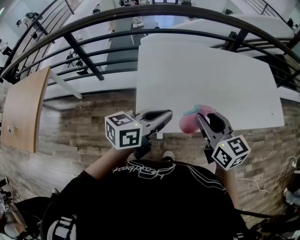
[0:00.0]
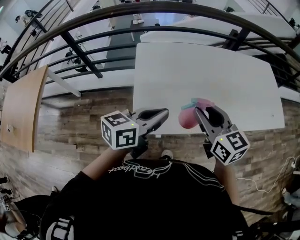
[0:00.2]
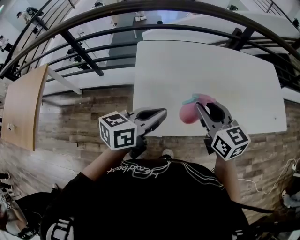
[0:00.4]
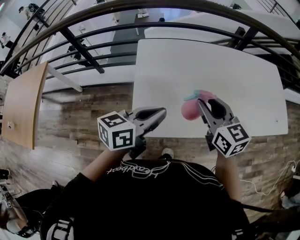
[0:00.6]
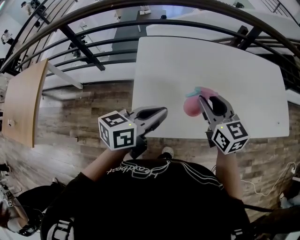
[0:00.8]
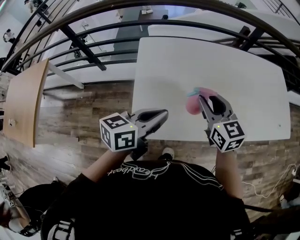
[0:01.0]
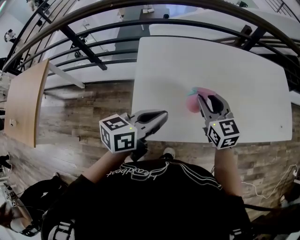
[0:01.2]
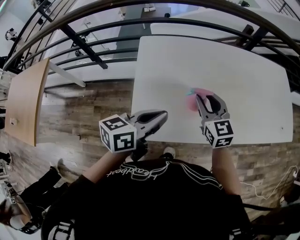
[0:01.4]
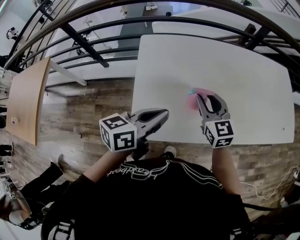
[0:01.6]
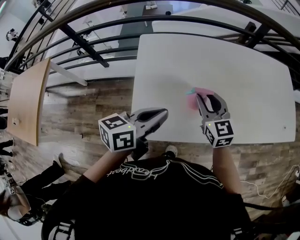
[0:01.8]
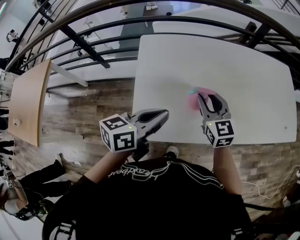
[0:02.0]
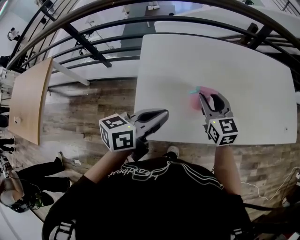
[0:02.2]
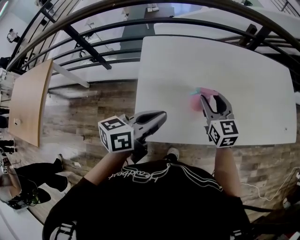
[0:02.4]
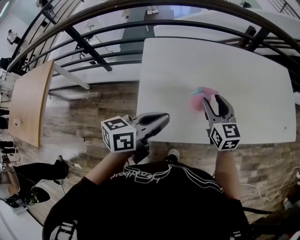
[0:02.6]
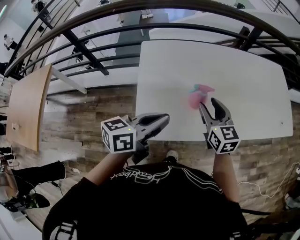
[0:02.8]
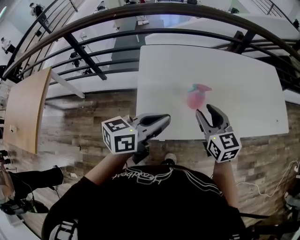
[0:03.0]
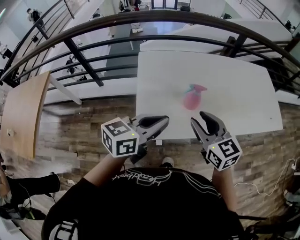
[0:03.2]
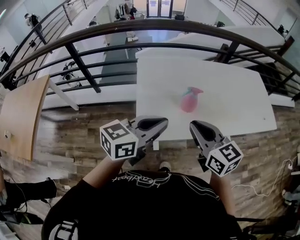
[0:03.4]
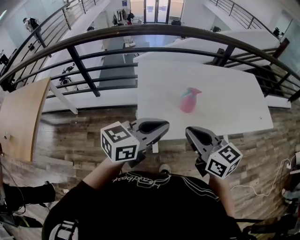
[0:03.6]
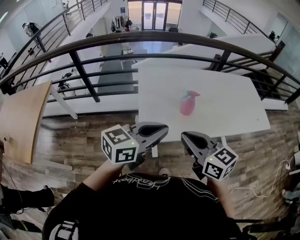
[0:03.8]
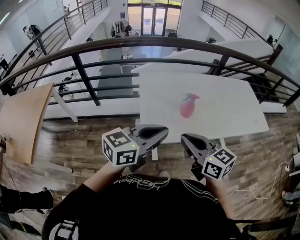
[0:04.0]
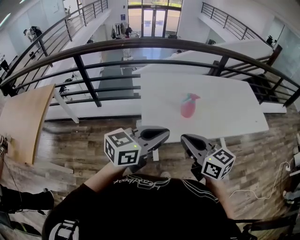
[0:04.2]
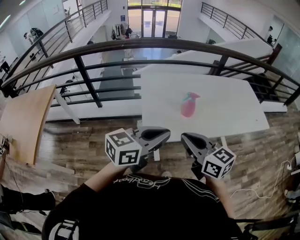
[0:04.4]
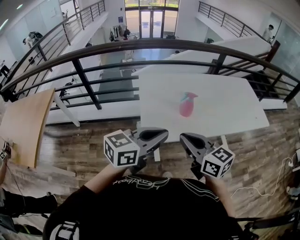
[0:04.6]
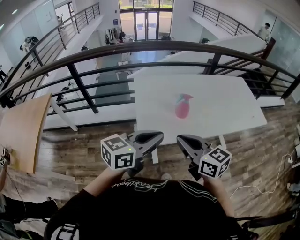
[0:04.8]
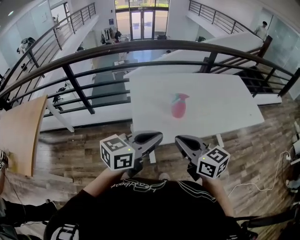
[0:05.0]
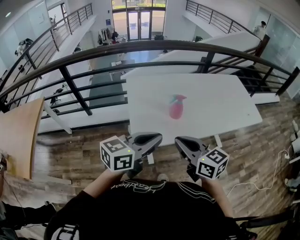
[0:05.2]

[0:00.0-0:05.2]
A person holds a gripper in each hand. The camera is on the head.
0:00.0 to 0:01.8: The right gripper is displaced forward and downward by roughly 20 cm. Meanwhile the left gripper moves forward and downward, about 10 cm.
0:01.8 to 0:03.4: The left gripper travels backward and upward by approximately 15 cm, and swivels about 20 degrees. The right gripper moves backward and upward, some 25 cm, and closes up.
0:03.4 to 0:05.2: The two grippers go some 10 cm backward.

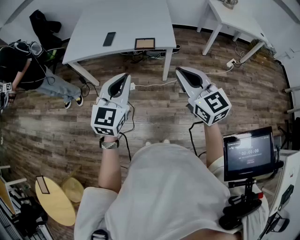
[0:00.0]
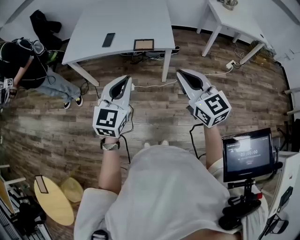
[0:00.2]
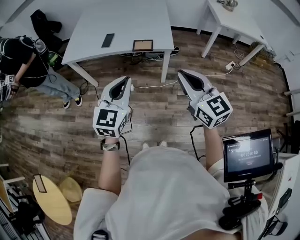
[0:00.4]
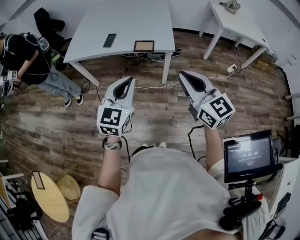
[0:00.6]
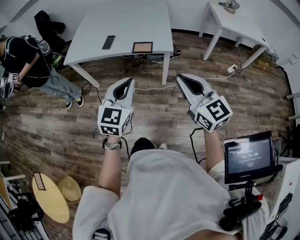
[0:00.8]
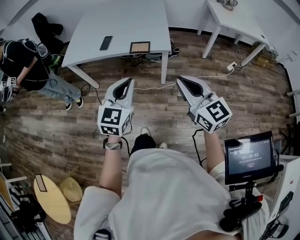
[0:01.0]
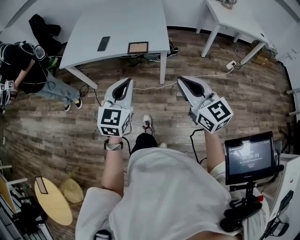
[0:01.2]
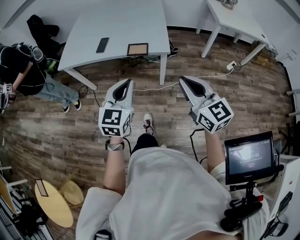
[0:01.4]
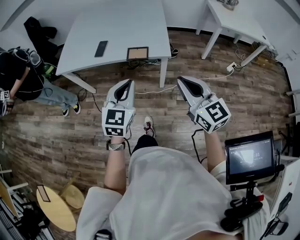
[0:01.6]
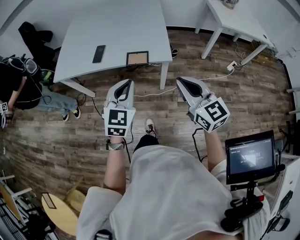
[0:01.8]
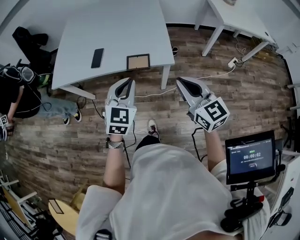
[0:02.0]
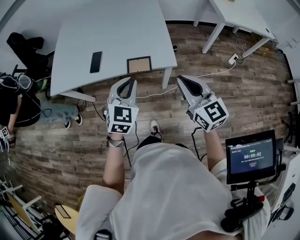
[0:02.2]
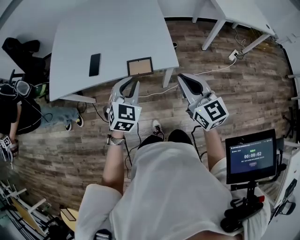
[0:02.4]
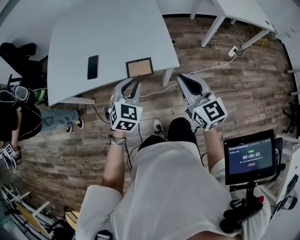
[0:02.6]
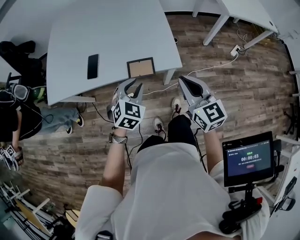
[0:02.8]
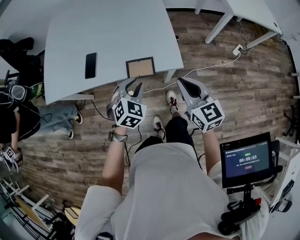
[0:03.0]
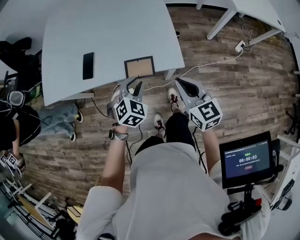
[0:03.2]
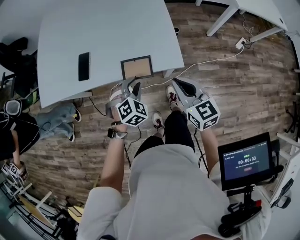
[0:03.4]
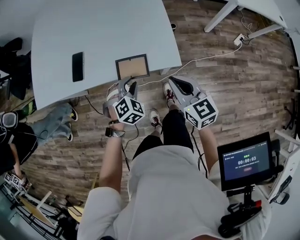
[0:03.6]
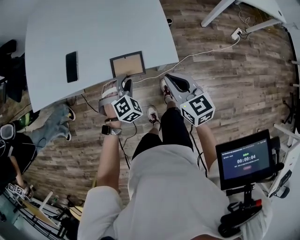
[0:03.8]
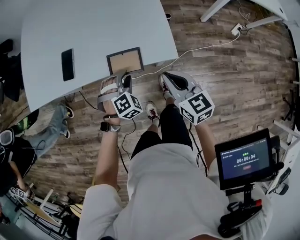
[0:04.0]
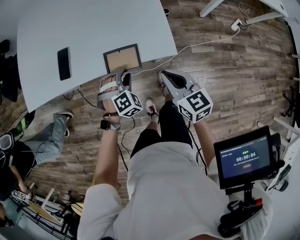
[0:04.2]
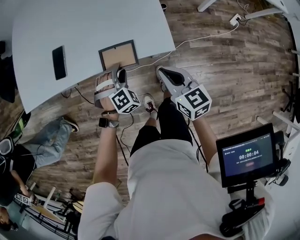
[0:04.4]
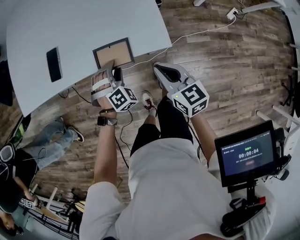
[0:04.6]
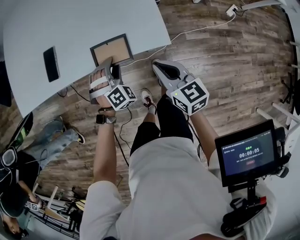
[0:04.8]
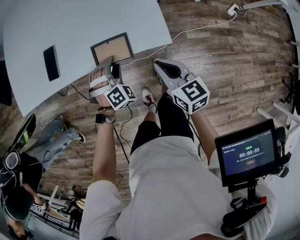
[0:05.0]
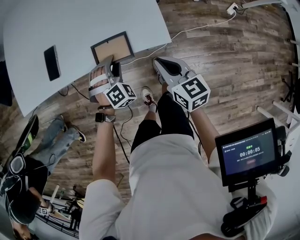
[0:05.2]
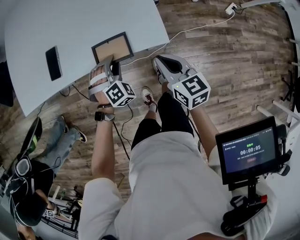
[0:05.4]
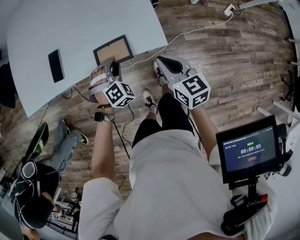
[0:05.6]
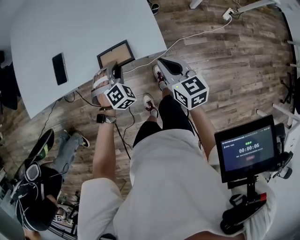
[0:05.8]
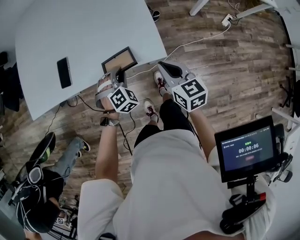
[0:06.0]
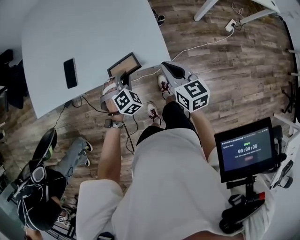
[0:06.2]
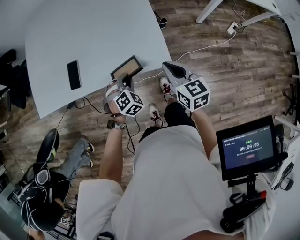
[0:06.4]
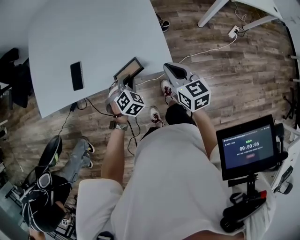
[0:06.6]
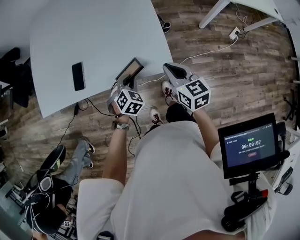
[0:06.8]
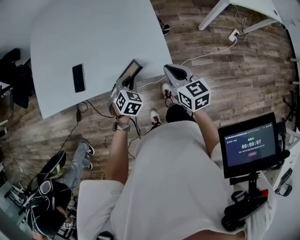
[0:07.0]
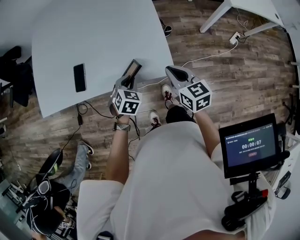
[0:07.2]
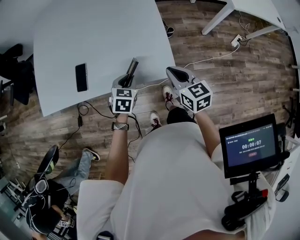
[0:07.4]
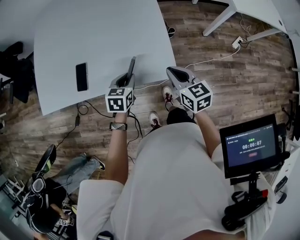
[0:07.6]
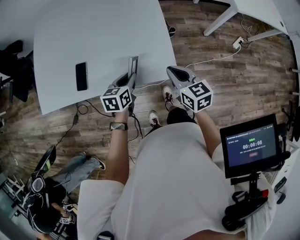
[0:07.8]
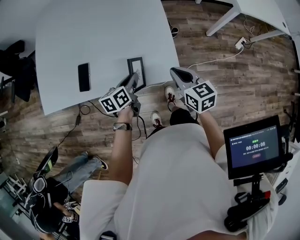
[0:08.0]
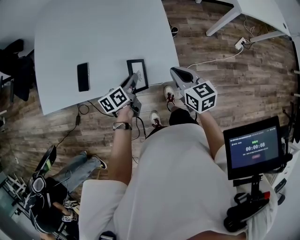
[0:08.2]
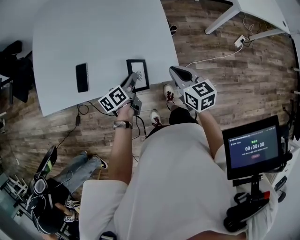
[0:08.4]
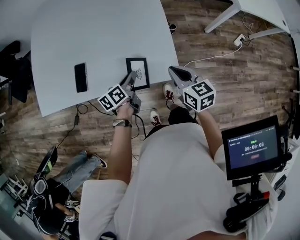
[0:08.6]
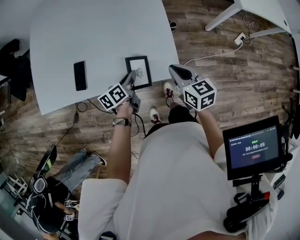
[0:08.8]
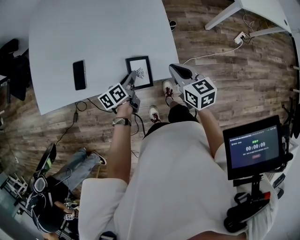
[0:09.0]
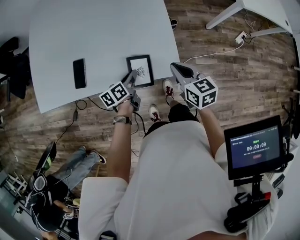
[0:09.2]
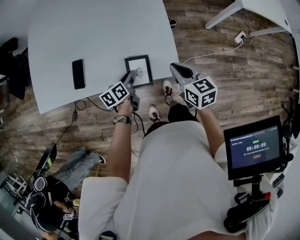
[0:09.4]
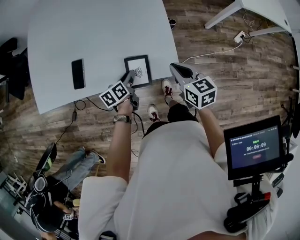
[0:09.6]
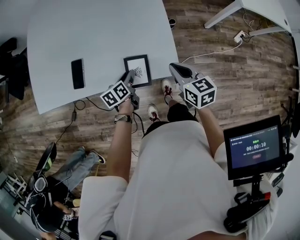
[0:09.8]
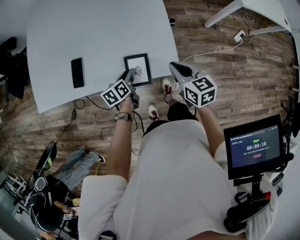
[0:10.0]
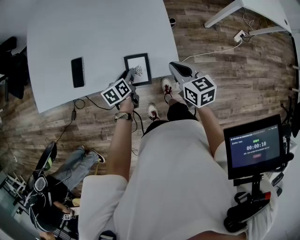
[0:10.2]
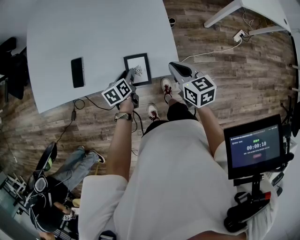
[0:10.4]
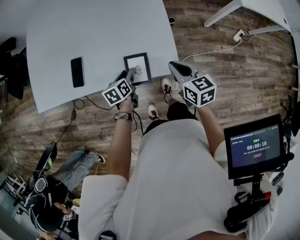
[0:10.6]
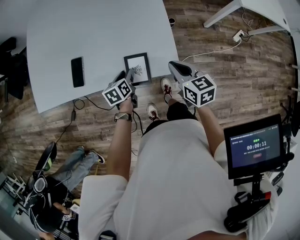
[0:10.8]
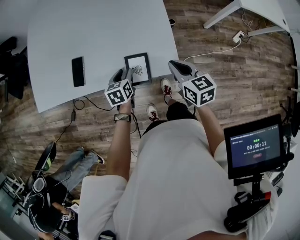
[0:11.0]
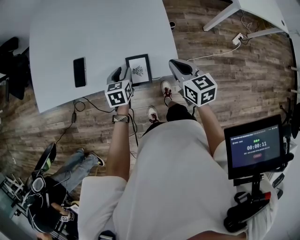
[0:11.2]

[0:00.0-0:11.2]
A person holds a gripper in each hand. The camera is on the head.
0:00.0 to 0:01.6: The left gripper is displaced forward, to the right and downward by some 10 cm; the right gripper goes roughly 10 cm to the right and forward.
0:01.6 to 0:03.2: Both grippers move forward and downward, some 30 cm. The left gripper points its fingers roughly 30 degrees further downward, and opens up.
0:03.2 to 0:04.8: Both grippers travel together downward, roughly 10 cm. The left gripper turns by about 30 degrees.
0:04.8 to 0:06.4: The left gripper swivels some 20 degrees. Meanwhile the right gripper travels forward by some 5 cm.
0:06.4 to 0:08.0: The left gripper changes place by some 5 cm, and twists some 80 degrees counterclockwise, seen from behind.
0:08.0 to 0:09.6: The left gripper travels downward by approximately 5 cm.
0:09.6 to 0:11.2: The left gripper rotates roughly 30 degrees.

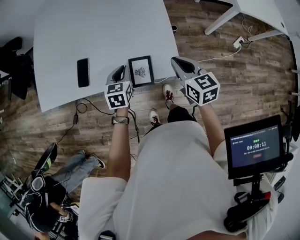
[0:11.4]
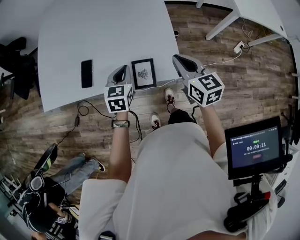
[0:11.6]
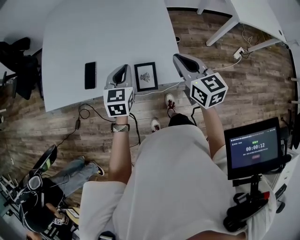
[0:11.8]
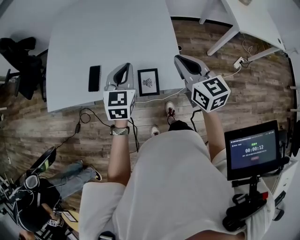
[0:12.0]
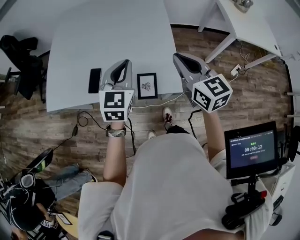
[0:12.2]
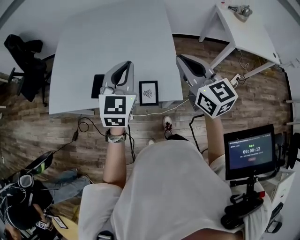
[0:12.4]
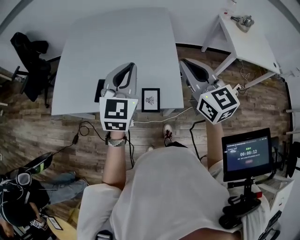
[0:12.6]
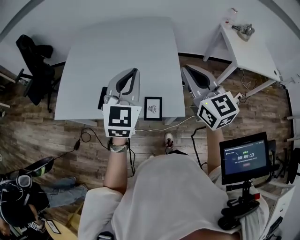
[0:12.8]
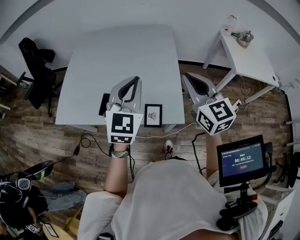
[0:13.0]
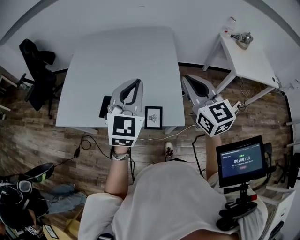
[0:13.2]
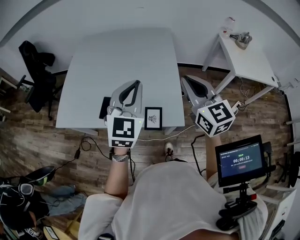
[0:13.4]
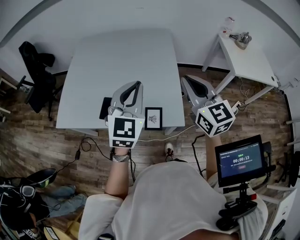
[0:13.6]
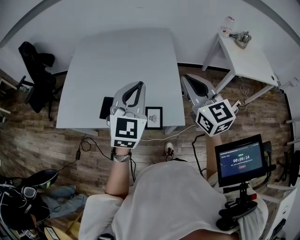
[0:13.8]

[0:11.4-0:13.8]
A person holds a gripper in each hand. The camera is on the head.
0:11.4 to 0:12.6: The two grippers go approximately 30 cm upward. The left gripper tilts its fingers approximately 30 degrees upward. Meanwhile the right gripper changes its angle by roughly 30 degrees.
0:12.6 to 0:13.8: The grippers move only a little.

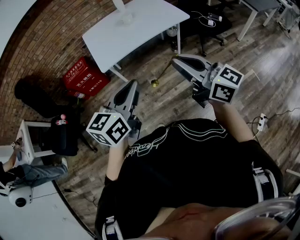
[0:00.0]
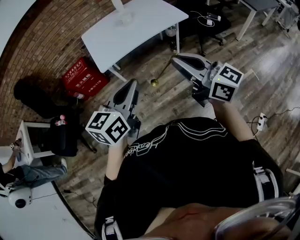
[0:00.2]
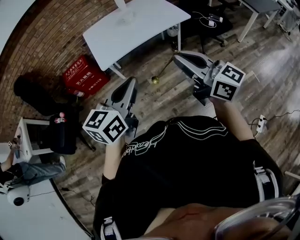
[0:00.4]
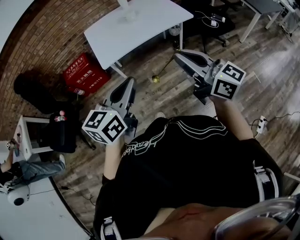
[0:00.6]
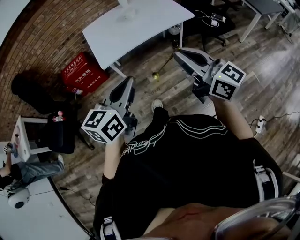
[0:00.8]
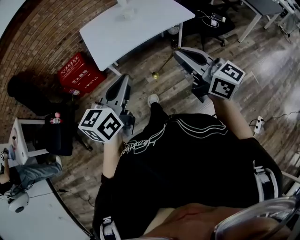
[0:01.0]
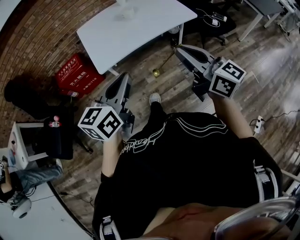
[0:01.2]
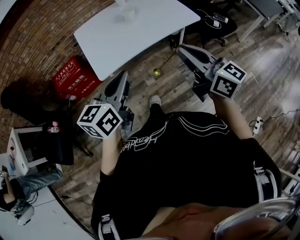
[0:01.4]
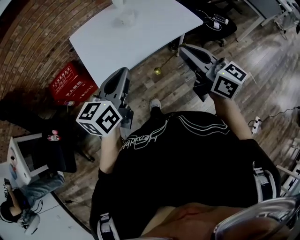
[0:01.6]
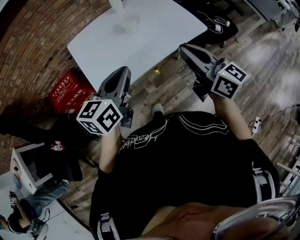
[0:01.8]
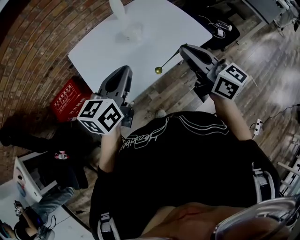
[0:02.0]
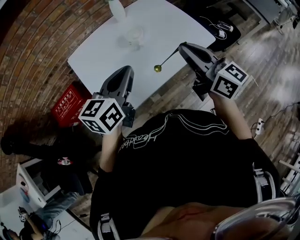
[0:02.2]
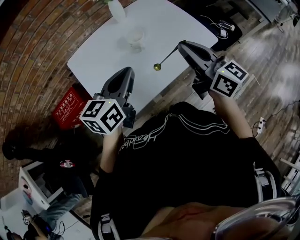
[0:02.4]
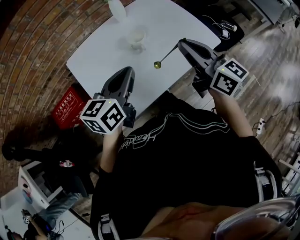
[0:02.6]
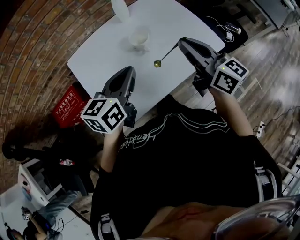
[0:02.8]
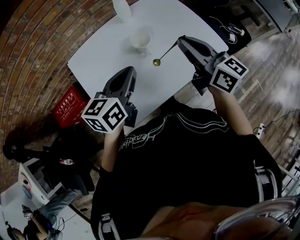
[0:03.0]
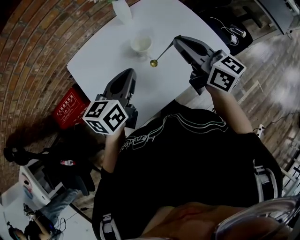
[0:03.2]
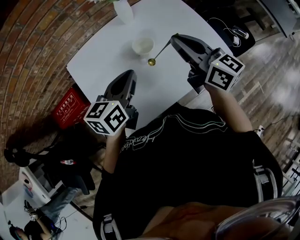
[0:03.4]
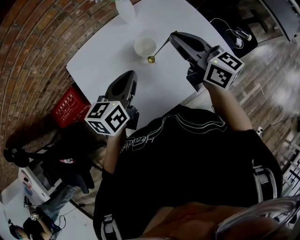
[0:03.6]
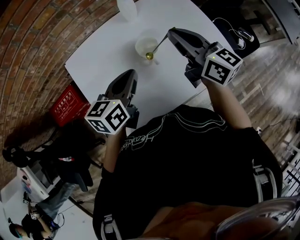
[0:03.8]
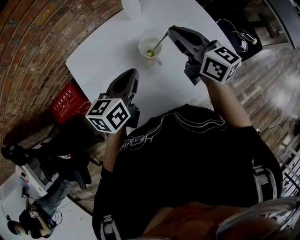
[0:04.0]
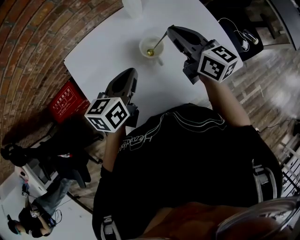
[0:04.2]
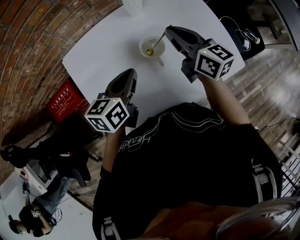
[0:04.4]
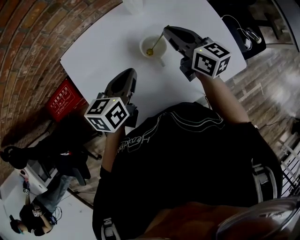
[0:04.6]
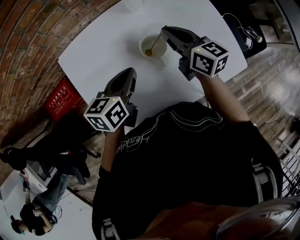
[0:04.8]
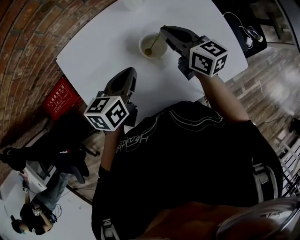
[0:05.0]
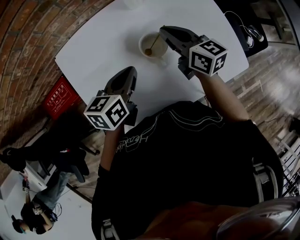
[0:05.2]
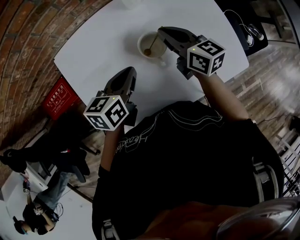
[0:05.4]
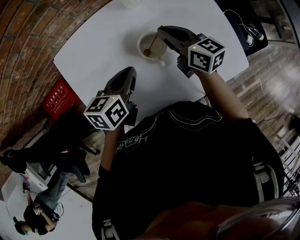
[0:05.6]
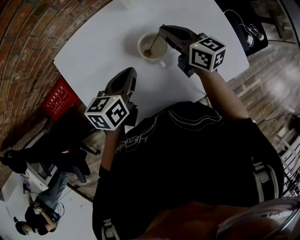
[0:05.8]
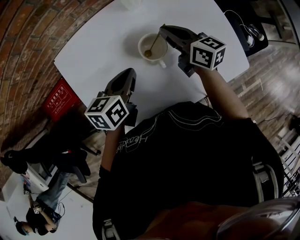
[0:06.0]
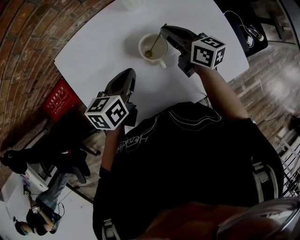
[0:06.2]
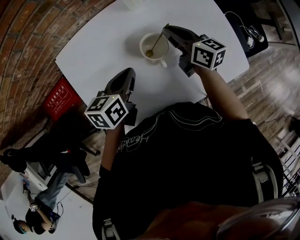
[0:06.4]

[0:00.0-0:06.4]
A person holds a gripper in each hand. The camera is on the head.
0:00.0 to 0:01.6: Both grippers travel together forward, about 25 cm.
0:01.6 to 0:03.2: The grippers both shift forward by roughly 35 cm.
0:03.2 to 0:04.8: The left gripper moves downward and forward, approximately 15 cm, while the right gripper shifts approximately 20 cm forward and downward.
0:04.8 to 0:06.4: The right gripper travels downward by some 5 cm.
